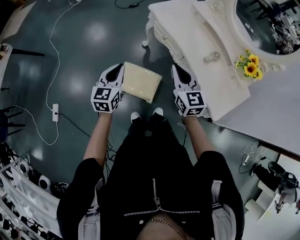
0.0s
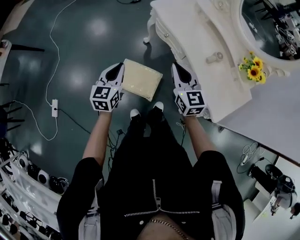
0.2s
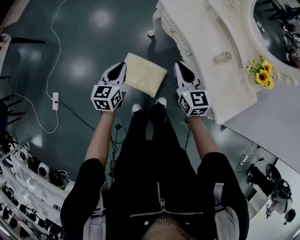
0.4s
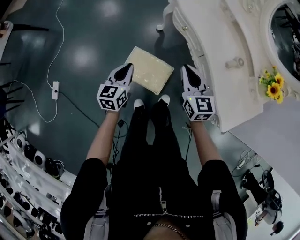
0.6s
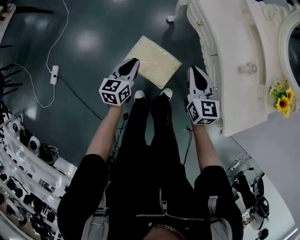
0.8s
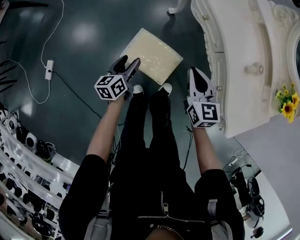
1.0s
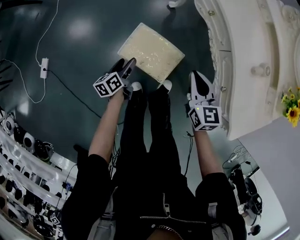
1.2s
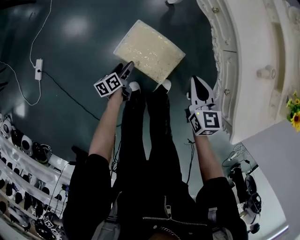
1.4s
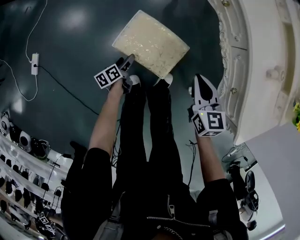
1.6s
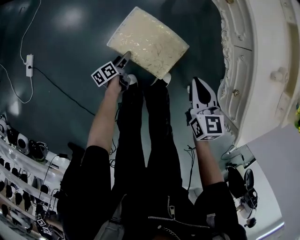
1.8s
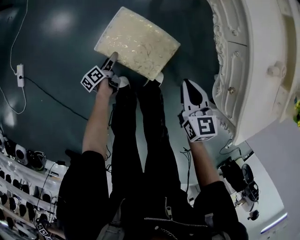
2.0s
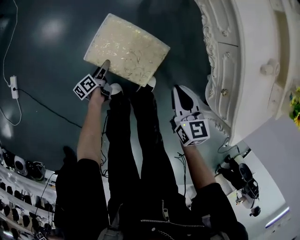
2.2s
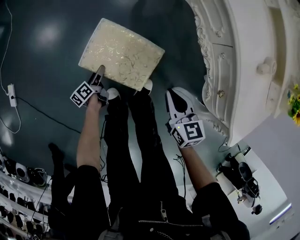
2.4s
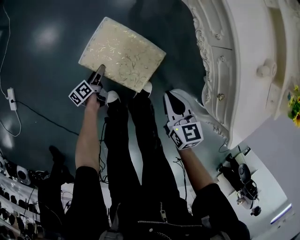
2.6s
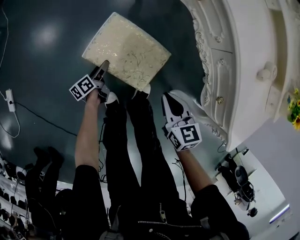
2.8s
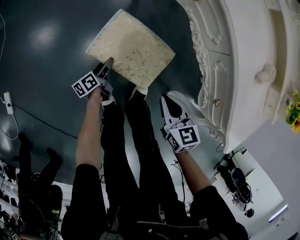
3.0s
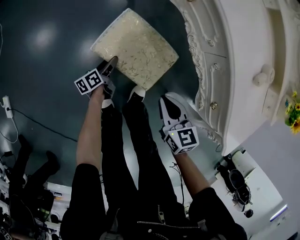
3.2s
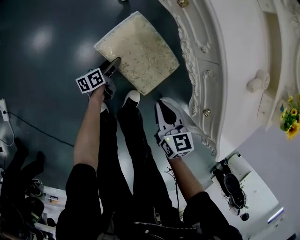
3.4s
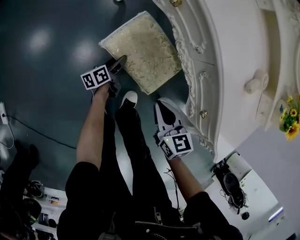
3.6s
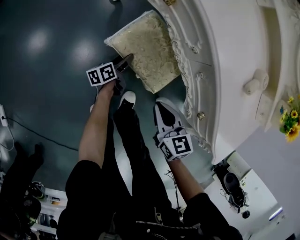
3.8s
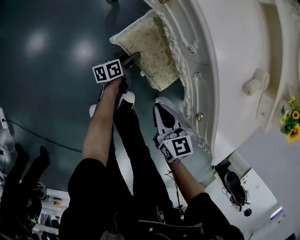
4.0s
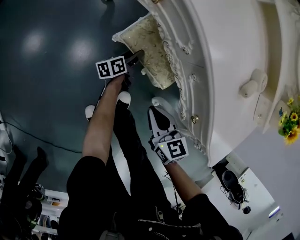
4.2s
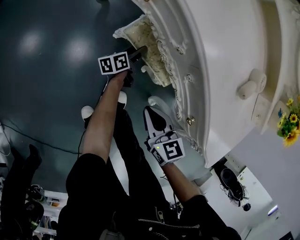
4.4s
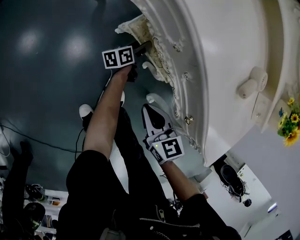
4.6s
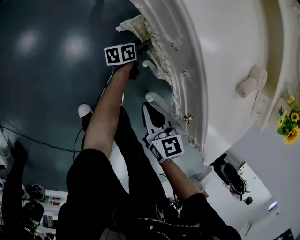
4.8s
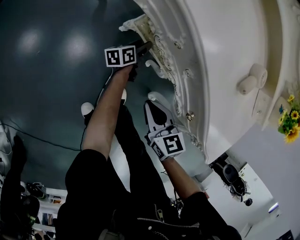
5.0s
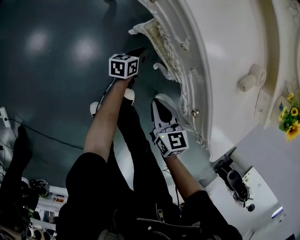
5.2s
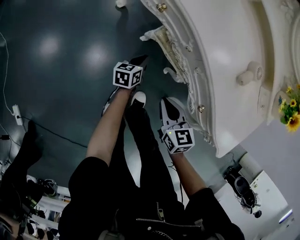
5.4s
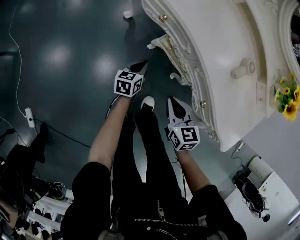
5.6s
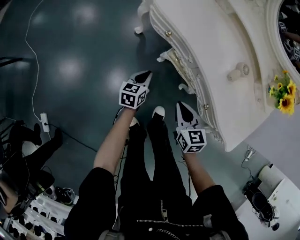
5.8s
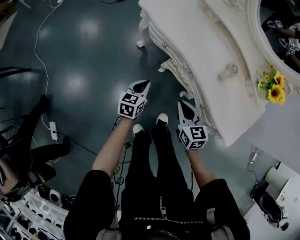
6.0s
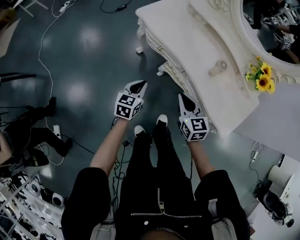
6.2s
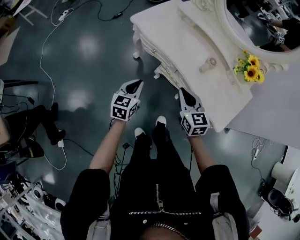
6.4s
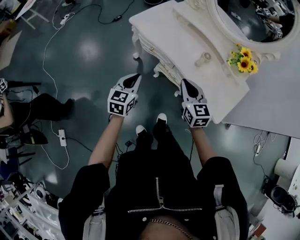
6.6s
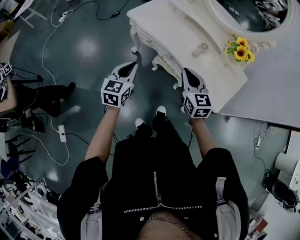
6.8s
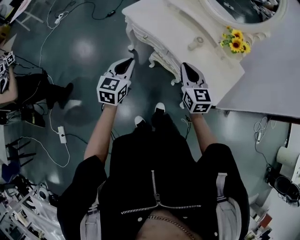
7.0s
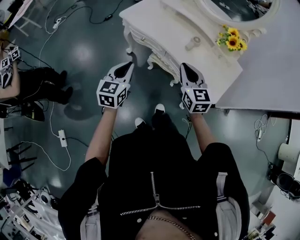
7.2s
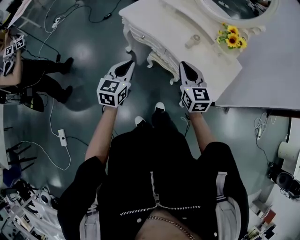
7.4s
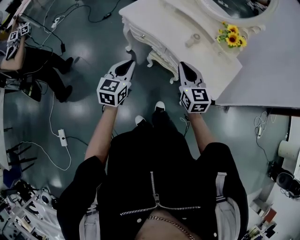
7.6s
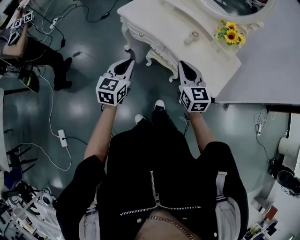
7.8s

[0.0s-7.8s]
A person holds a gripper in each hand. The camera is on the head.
0.0s to 1.6s: The right gripper travels downward by about 30 cm, and rotates some 30 degrees. The left gripper is displaced downward by roughly 50 cm, rolls counterclockwise, seen from behind, by some 60 degrees, and opens.
1.6s to 3.2s: The left gripper shifts some 15 cm forward, to the right and downward; the right gripper shifts roughly 10 cm downward.
3.2s to 4.6s: The left gripper shifts some 30 cm to the right and forward. The right gripper is displaced to the right by approximately 5 cm.
4.6s to 6.2s: The right gripper goes about 30 cm upward, while the left gripper goes approximately 50 cm upward, to the left and backward, rotates around the line of its fingers by about 60 degrees, clockwise from behind, and closes up.
6.2s to 7.8s: The left gripper heads upward and backward, covering roughly 20 cm. The right gripper shifts roughly 20 cm upward, backward and to the right.

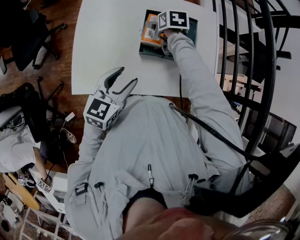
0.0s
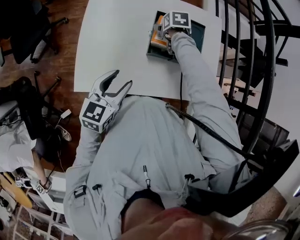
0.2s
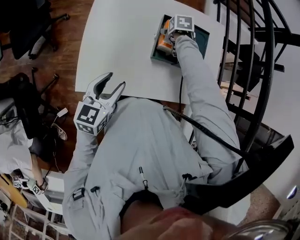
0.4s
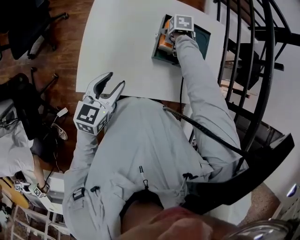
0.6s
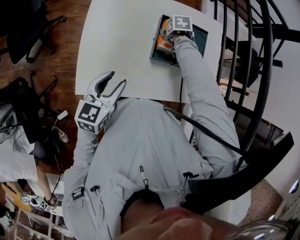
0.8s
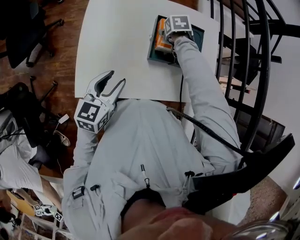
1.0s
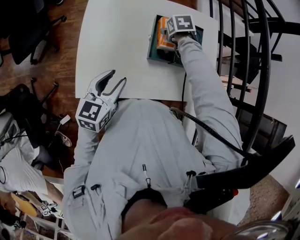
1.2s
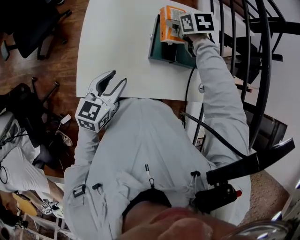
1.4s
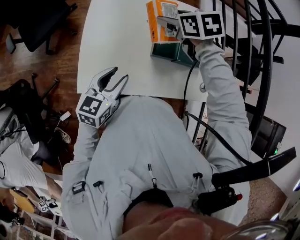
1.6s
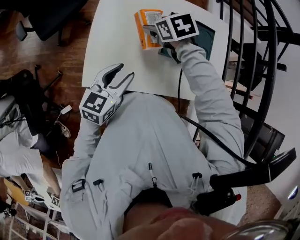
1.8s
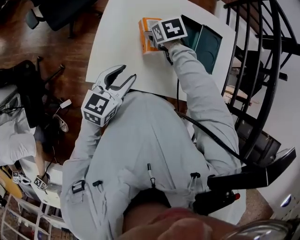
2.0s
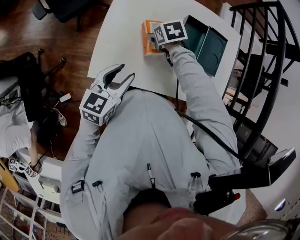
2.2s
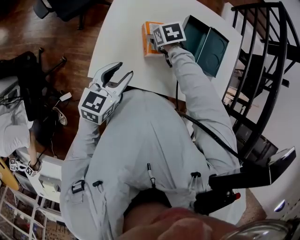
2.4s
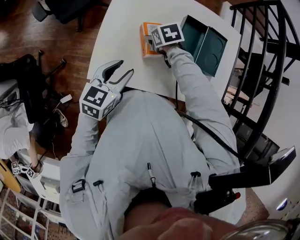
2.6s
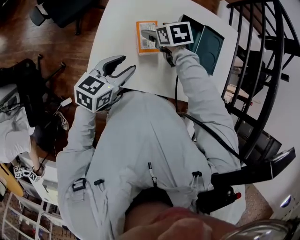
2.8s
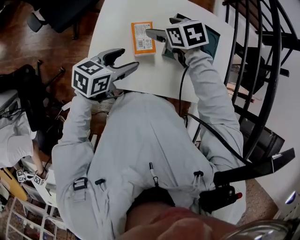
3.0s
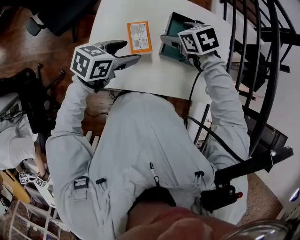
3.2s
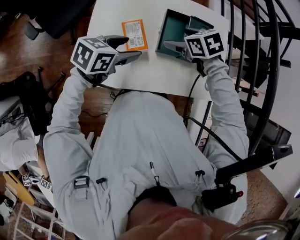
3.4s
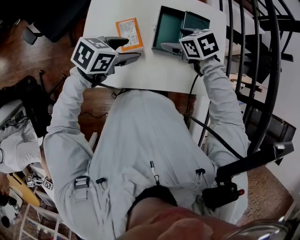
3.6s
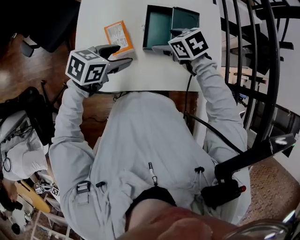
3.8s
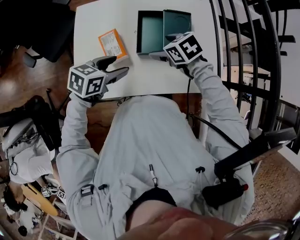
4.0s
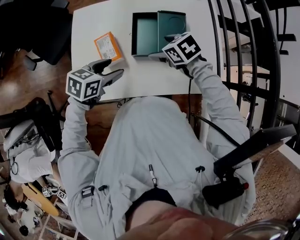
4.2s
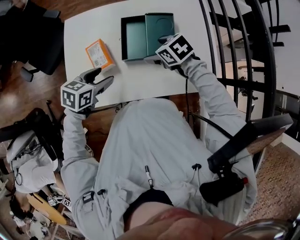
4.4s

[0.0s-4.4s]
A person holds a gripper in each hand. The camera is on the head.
0.0s to 1.4s: The left gripper ends up about 15 cm from where it was. Meanwhile the right gripper reaches roughly 10 cm downward, then returns.
1.4s to 3.0s: The left gripper ends up approximately 5 cm from where it was, while the right gripper swings up and down, about 20 cm each way, with 2 reversals.
3.0s to 4.4s: The right gripper changes place by about 15 cm; the left gripper shifts approximately 10 cm downward, and turns by some 20 degrees.

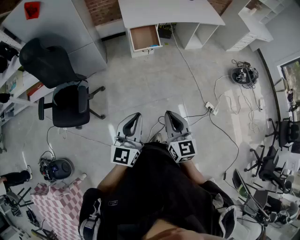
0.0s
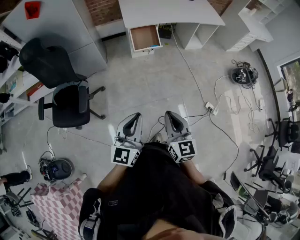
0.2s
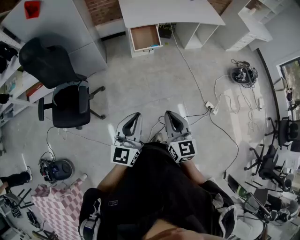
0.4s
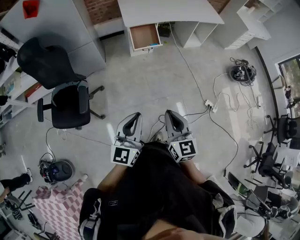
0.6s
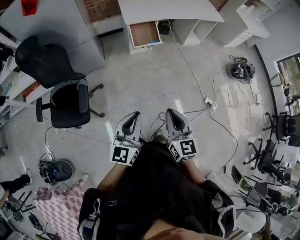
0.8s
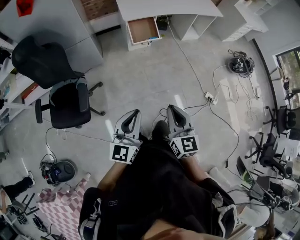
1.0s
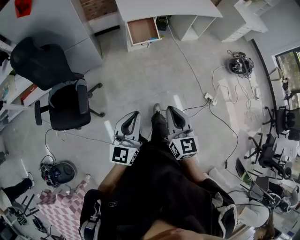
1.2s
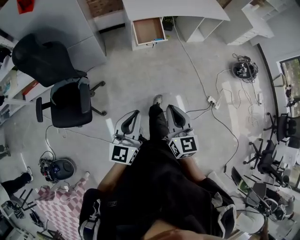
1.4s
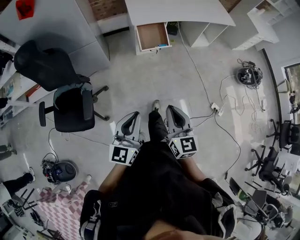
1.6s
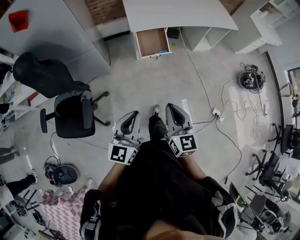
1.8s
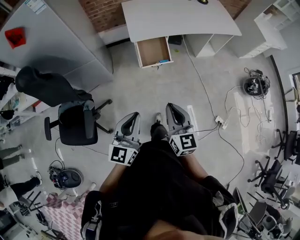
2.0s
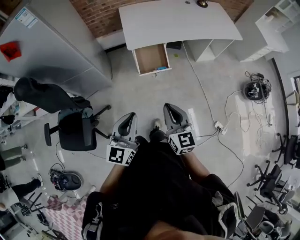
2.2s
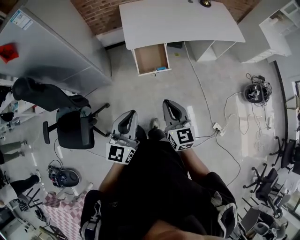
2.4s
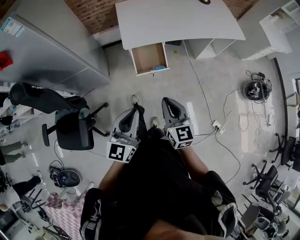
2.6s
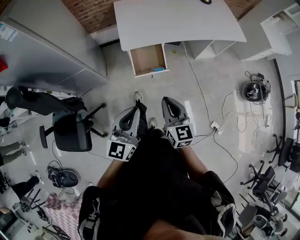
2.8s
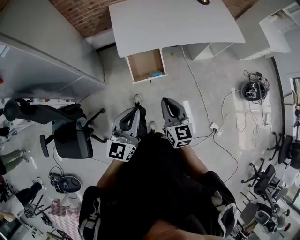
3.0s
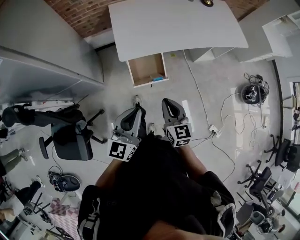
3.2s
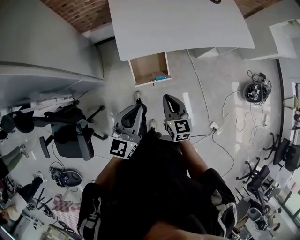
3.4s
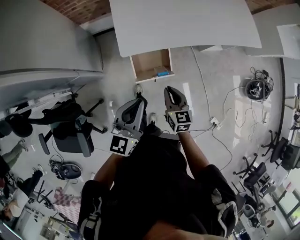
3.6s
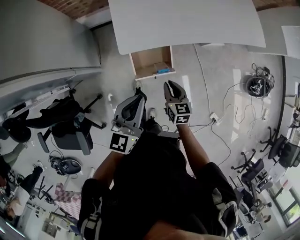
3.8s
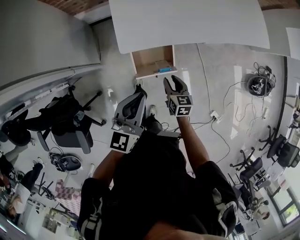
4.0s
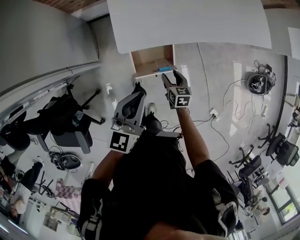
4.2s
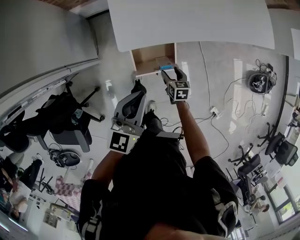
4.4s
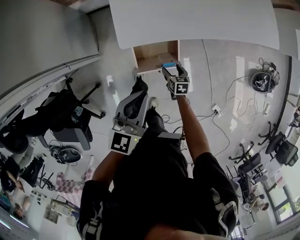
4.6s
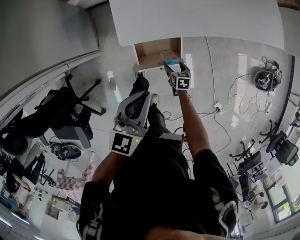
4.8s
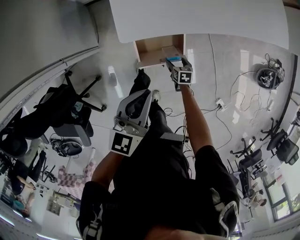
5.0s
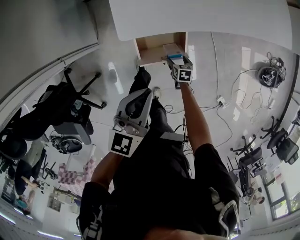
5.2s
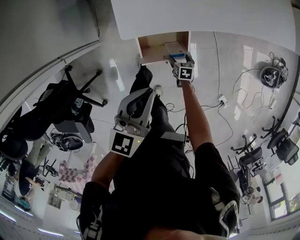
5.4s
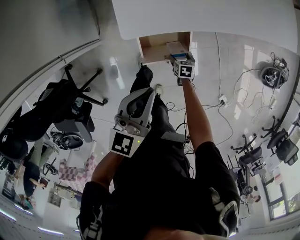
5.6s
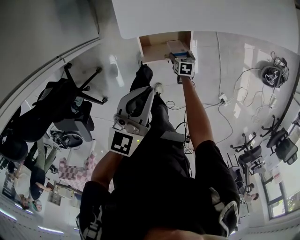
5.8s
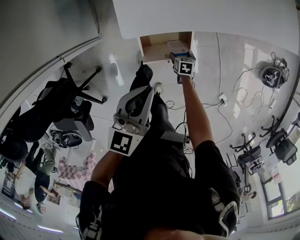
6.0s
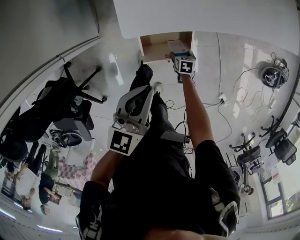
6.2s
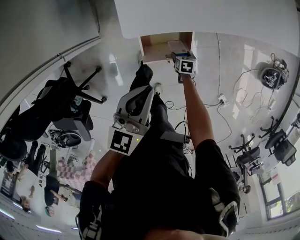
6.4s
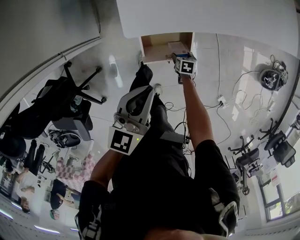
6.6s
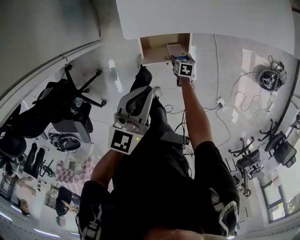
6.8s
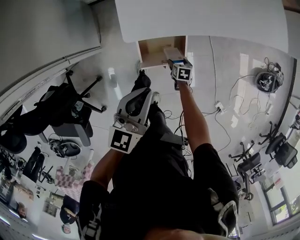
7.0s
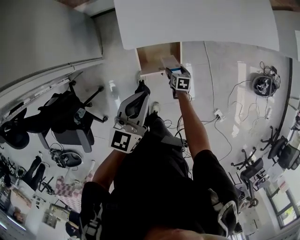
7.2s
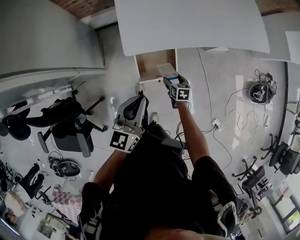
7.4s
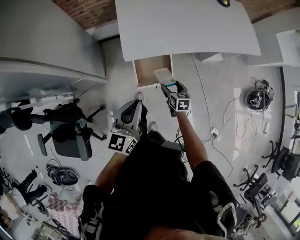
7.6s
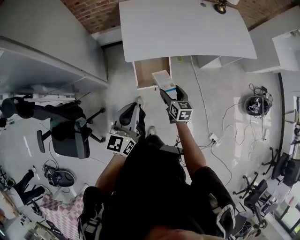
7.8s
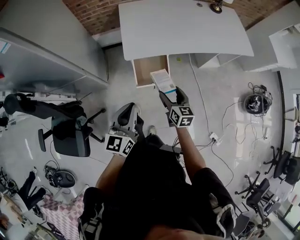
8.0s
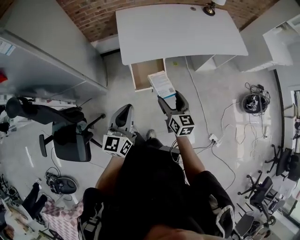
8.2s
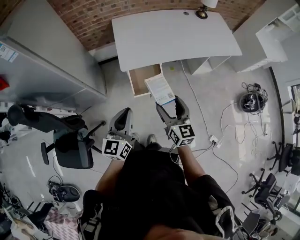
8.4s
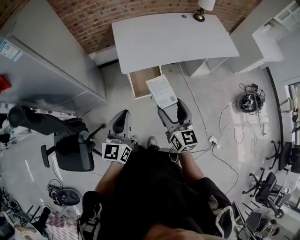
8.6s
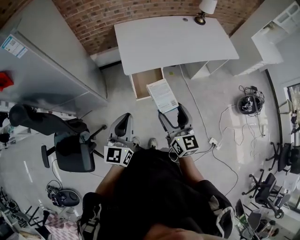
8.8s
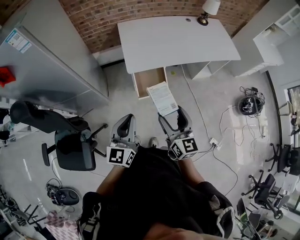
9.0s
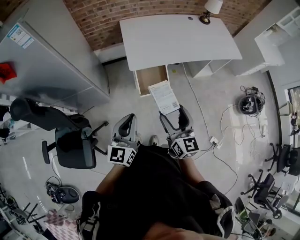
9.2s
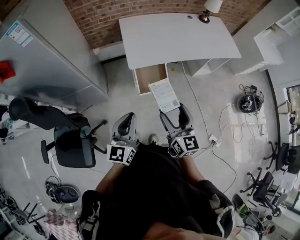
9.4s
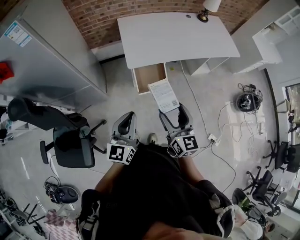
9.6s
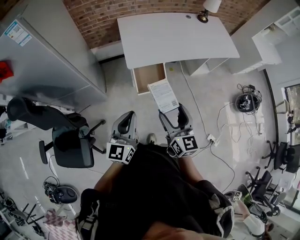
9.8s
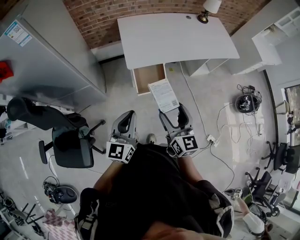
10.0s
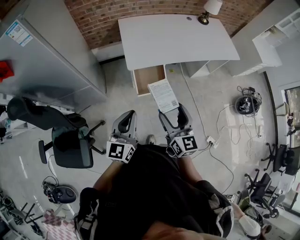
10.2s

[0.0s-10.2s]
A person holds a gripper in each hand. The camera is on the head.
0.0s to 1.4s: The right gripper goes about 10 cm to the left and forward; the left gripper heads to the left, covering about 10 cm.
1.4s to 3.0s: Both grippers are carried forward, approximately 50 cm.
3.0s to 4.4s: The left gripper shifts some 30 cm forward and downward. The right gripper heads downward and forward, covering approximately 40 cm, points its fingers about 30 degrees further downward, and opens.
4.4s to 5.8s: The right gripper travels downward by some 20 cm. Meanwhile the left gripper goes approximately 10 cm downward.
5.8s to 7.2s: The left gripper heads upward, covering some 5 cm. The right gripper shifts about 10 cm upward.
7.2s to 8.8s: The right gripper travels upward and backward by about 60 cm, and points its fingers approximately 60 degrees further upward; the left gripper is displaced backward and upward by about 30 cm.
8.8s to 10.2s: There are only small adjustments of the grippers.

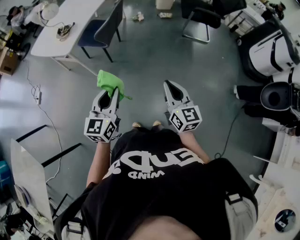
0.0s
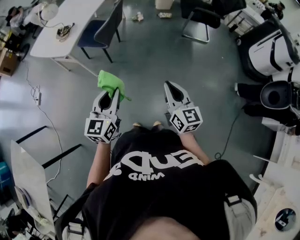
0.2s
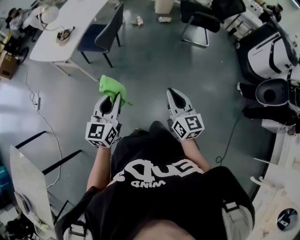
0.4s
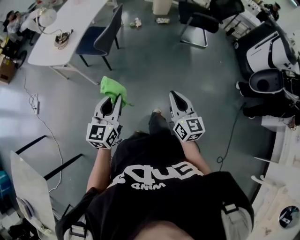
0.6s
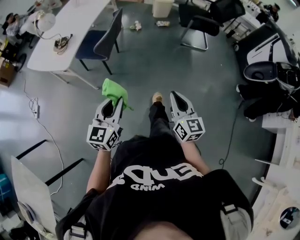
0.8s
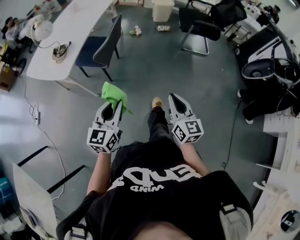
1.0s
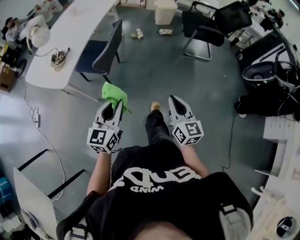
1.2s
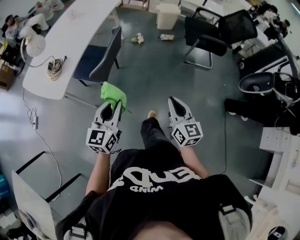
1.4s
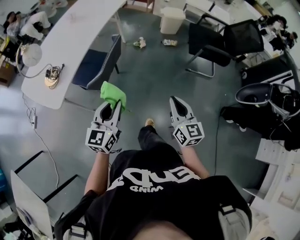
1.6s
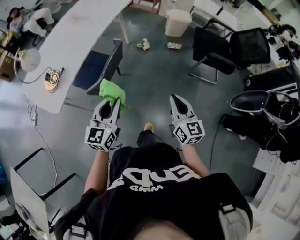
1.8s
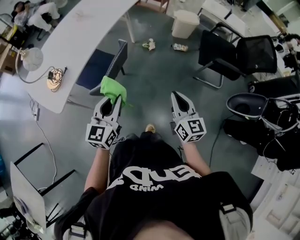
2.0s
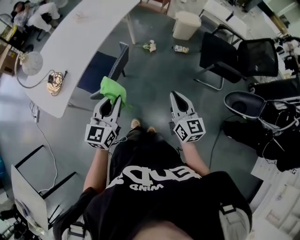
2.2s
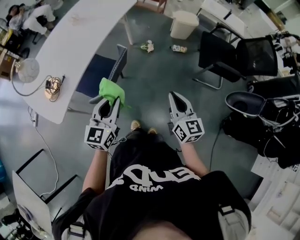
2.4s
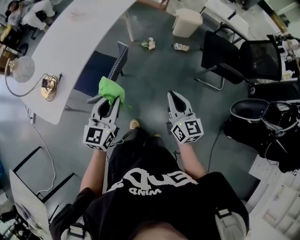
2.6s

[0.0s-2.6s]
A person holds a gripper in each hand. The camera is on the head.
0.0s to 1.2s: Both grippers move forward, approximately 20 cm.
1.2s to 2.6s: The two grippers go roughly 40 cm forward.
